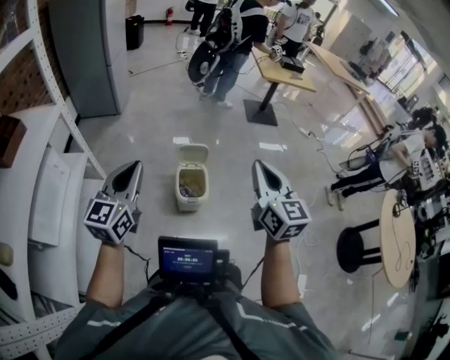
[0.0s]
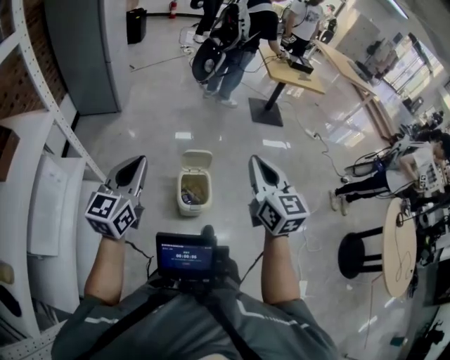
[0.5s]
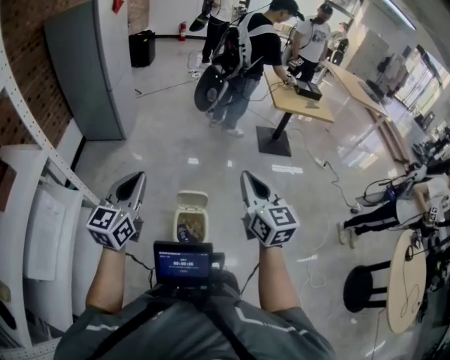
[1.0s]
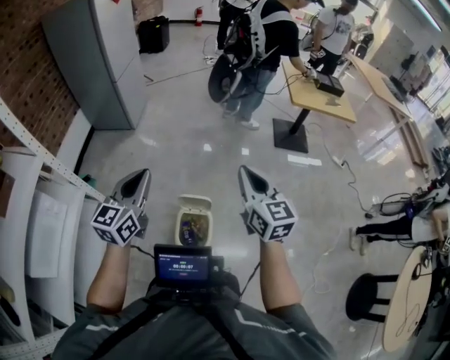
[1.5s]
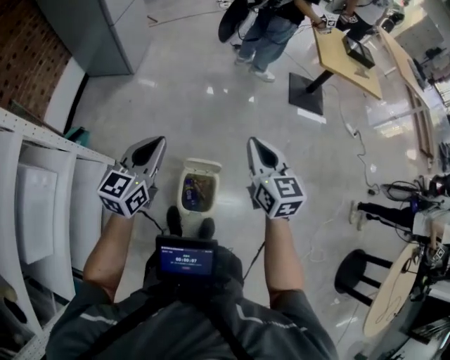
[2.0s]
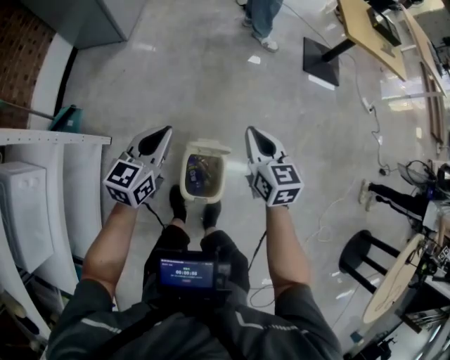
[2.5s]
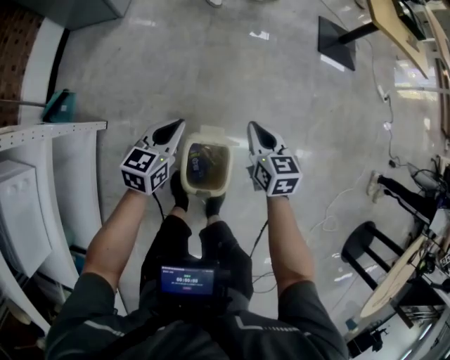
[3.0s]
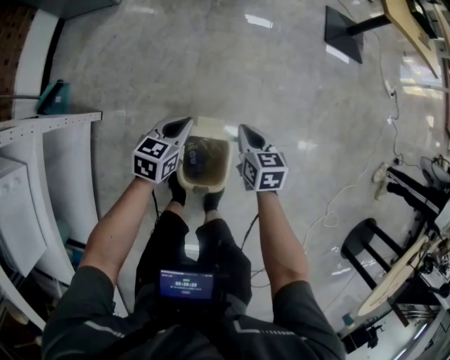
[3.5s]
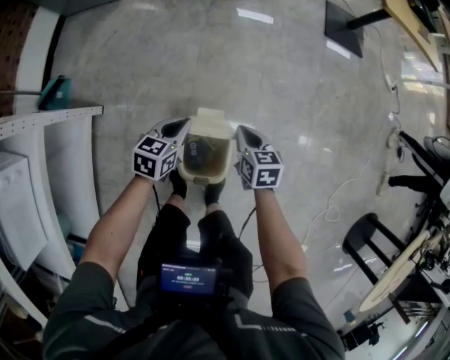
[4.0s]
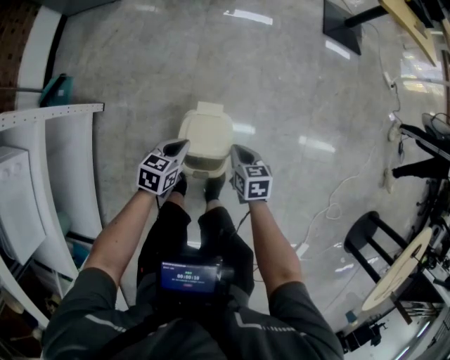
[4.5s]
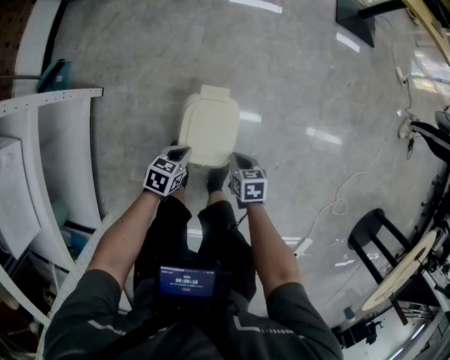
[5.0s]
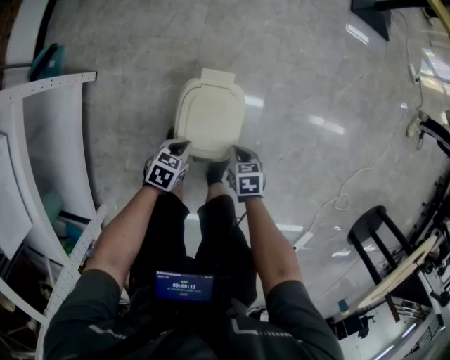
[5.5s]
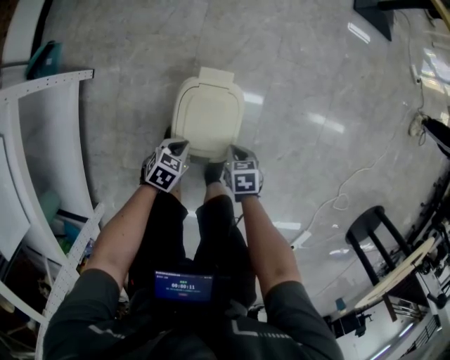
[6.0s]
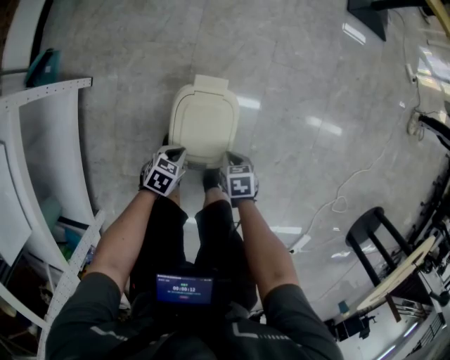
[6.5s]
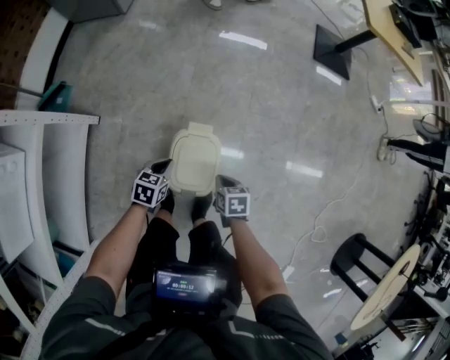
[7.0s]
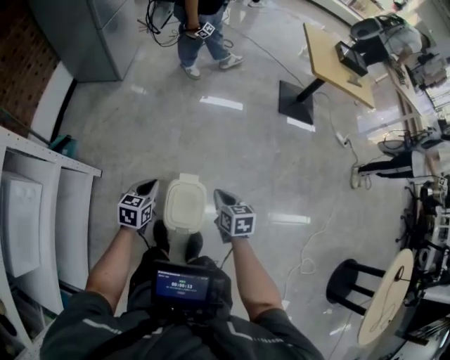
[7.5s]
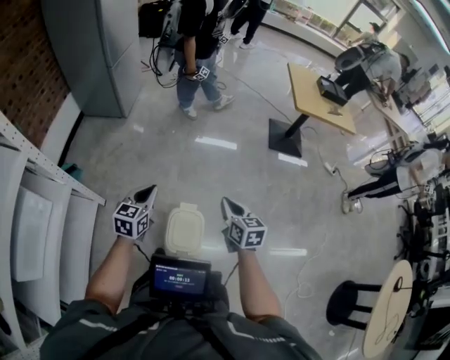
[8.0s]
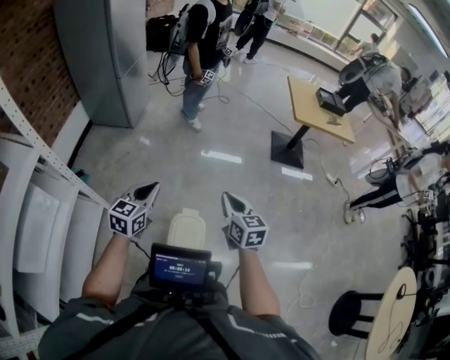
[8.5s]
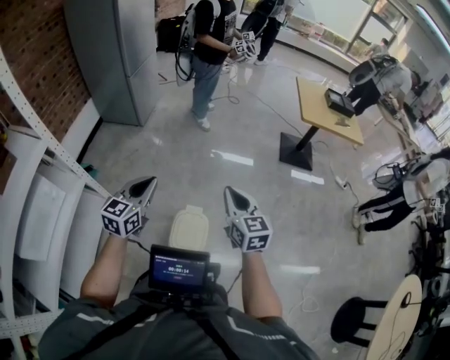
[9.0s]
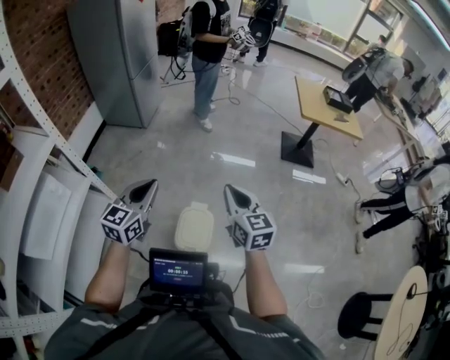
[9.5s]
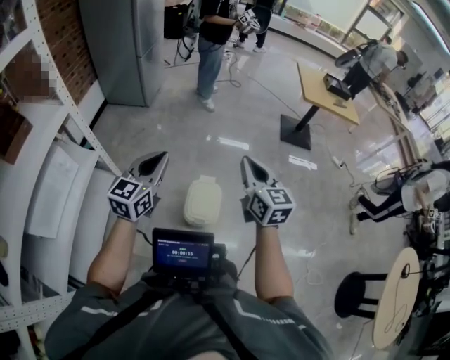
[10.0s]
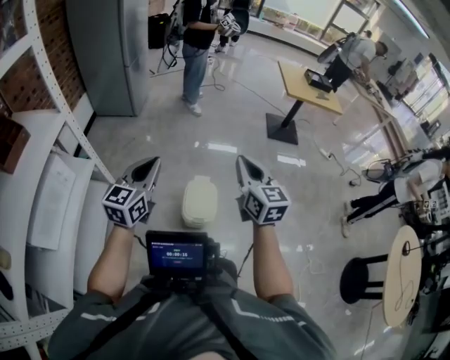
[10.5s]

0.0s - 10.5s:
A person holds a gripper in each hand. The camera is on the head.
0.0s - 2.0s: The two grippers go roughly 35 cm forward.
2.0s - 4.0s: Both grippers travel together downward, about 35 cm. The right gripper swivels approximately 30 degrees; the left gripper changes its angle by about 30 degrees.
4.0s - 6.5s: The left gripper ends up about 30 cm from where it was, and turns by approximately 30 degrees; the right gripper ends up some 30 cm from where it was, and swivels about 30 degrees.
6.5s - 8.5s: The two grippers go approximately 50 cm upward. The left gripper tilts its fingers some 40 degrees upward. The right gripper angles its fingers upward, by approximately 50 degrees.
8.5s - 10.5s: Both grippers travel together backward and upward, approximately 20 cm.

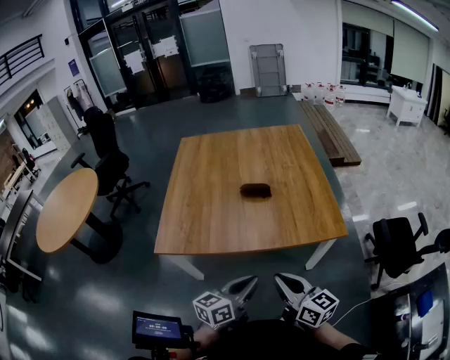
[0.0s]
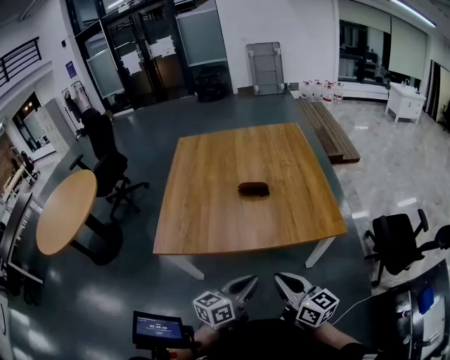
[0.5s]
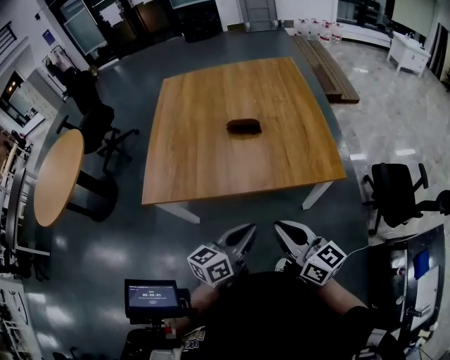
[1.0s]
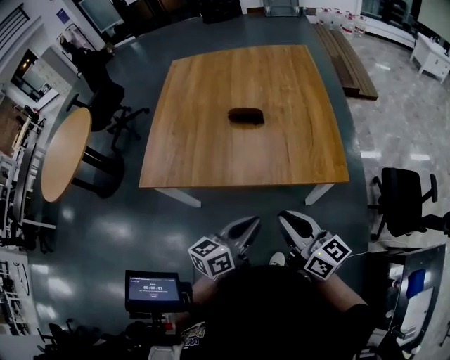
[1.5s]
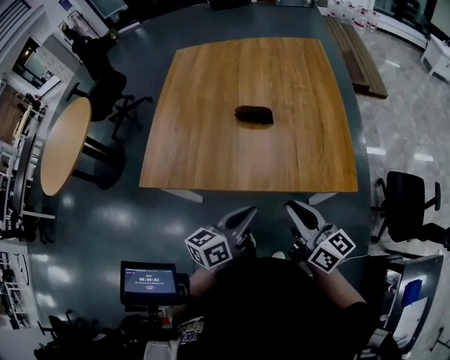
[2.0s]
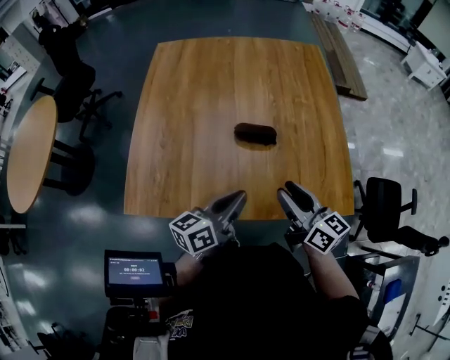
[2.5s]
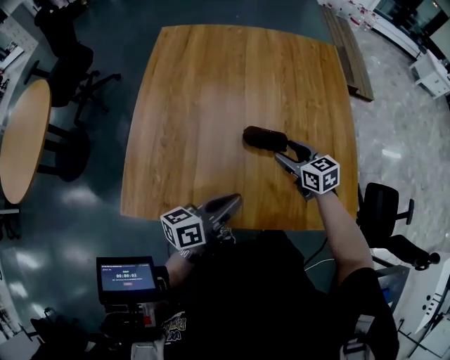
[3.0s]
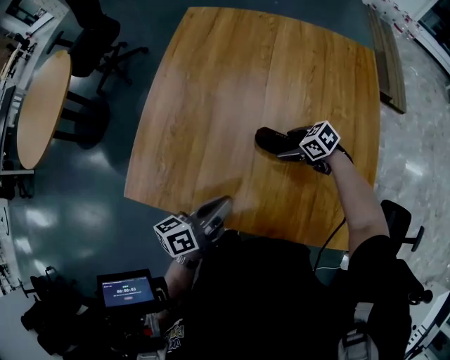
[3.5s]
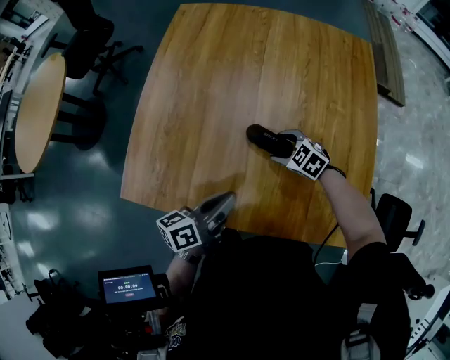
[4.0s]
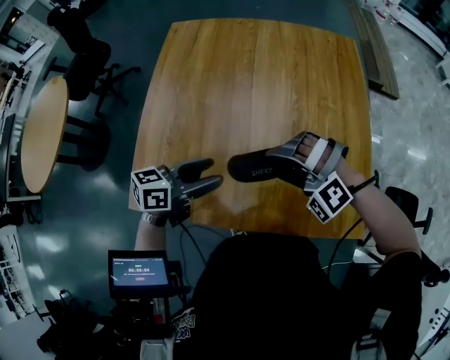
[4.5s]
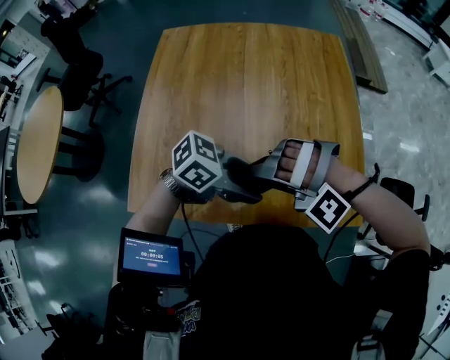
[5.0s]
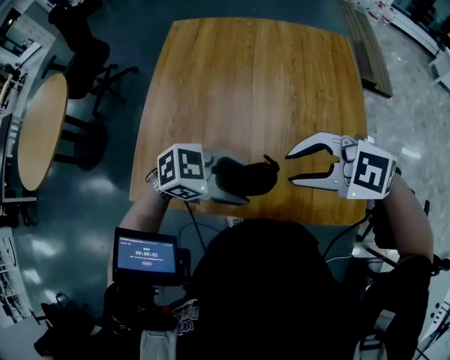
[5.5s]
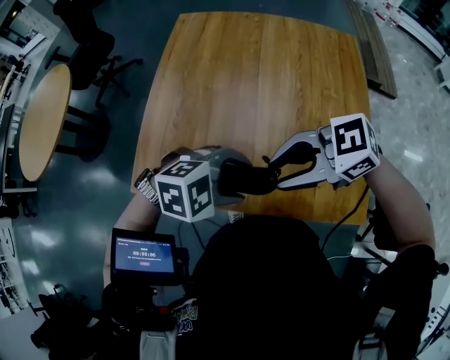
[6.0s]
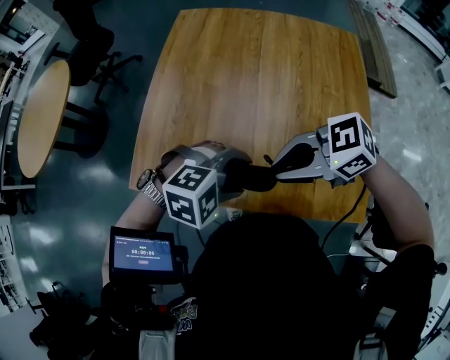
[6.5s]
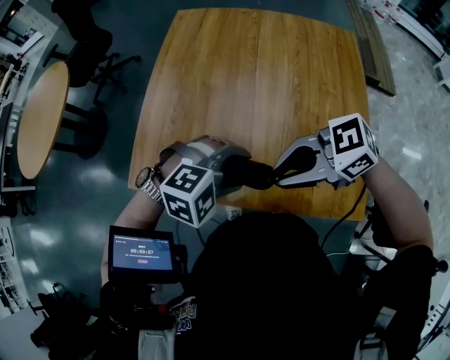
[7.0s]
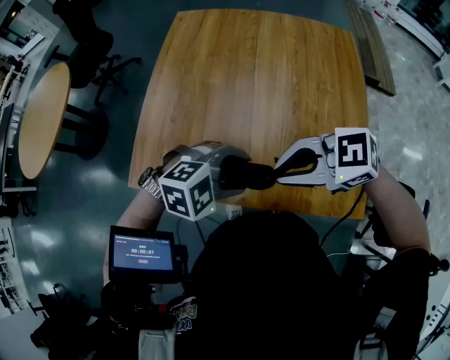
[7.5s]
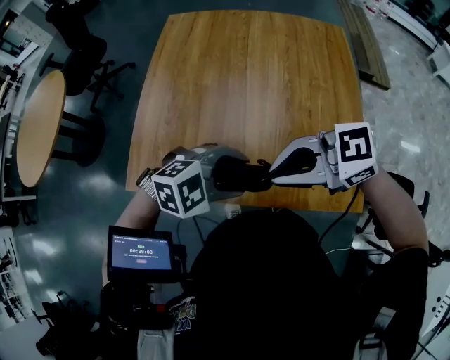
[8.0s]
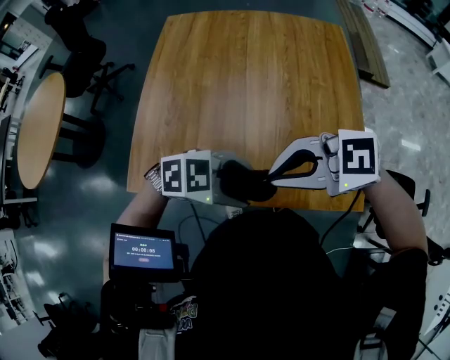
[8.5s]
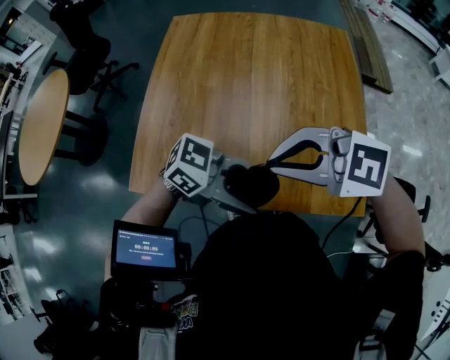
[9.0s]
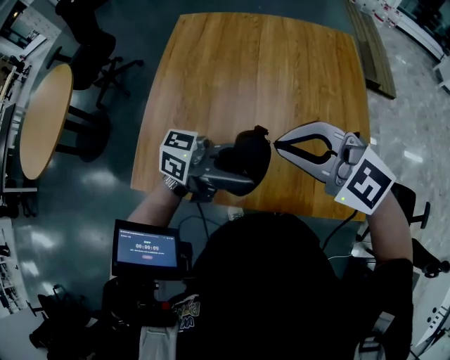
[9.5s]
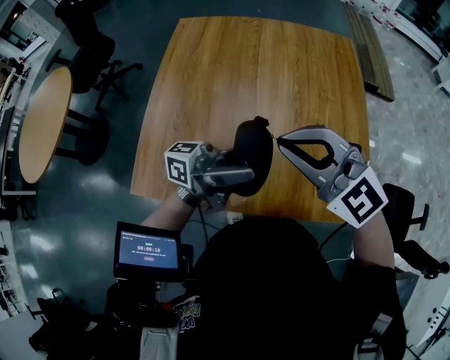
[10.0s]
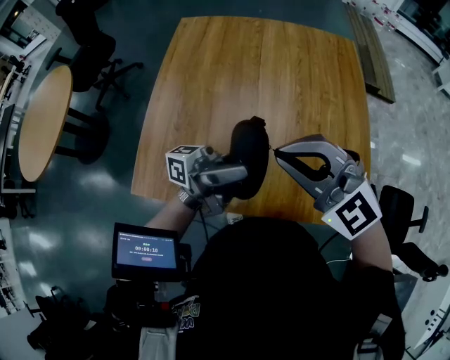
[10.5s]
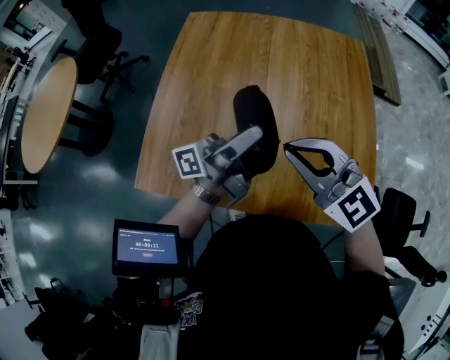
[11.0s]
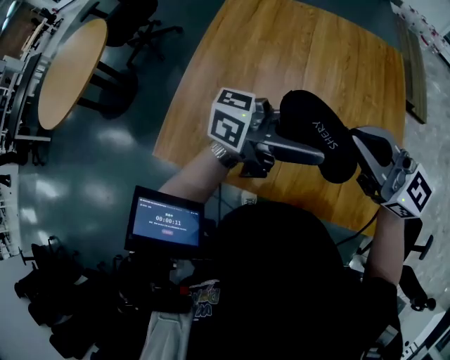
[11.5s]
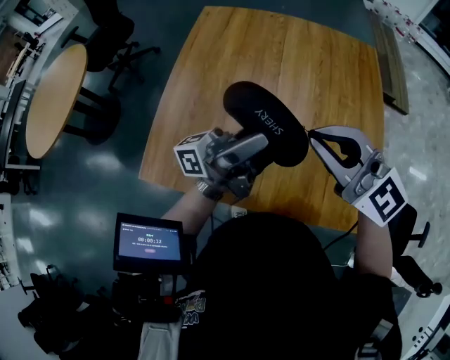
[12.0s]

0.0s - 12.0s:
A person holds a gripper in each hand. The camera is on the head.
0.0s - 2.0s: The left gripper shifts roughly 10 cm forward. Meanwhile the right gripper moves forward and to the right, some 10 cm.
2.0s - 4.0s: The left gripper moves roughly 25 cm. The right gripper ends up approximately 40 cm from where it was, angles its fingers downward, by some 50 degrees, and opens up.
4.0s - 6.0s: The left gripper heads upward, covering approximately 5 cm, rolls clockwise, seen from behind, by some 80 degrees, and opens up. Meanwhile the right gripper heads upward, covering about 30 cm, tips its fingers upward by approximately 30 degrees, and closes its fingers.
6.0s - 8.0s: The right gripper closes its fingers.
8.0s - 10.0s: The left gripper travels upward by approximately 10 cm, and angles its fingers upward, by roughly 80 degrees. Meanwhile the right gripper changes place by roughly 10 cm, and swivels some 60 degrees.
10.0s - 12.0s: The left gripper shifts by about 5 cm, and swivels roughly 20 degrees.

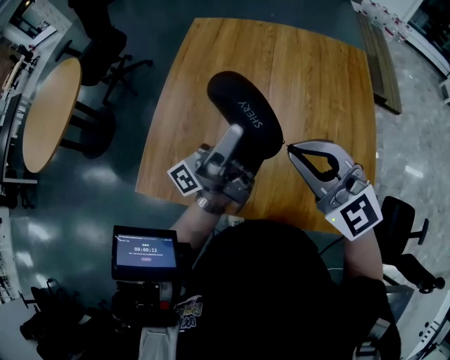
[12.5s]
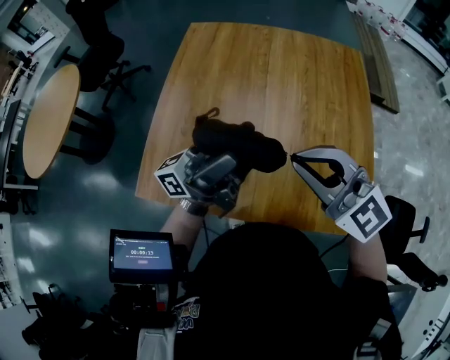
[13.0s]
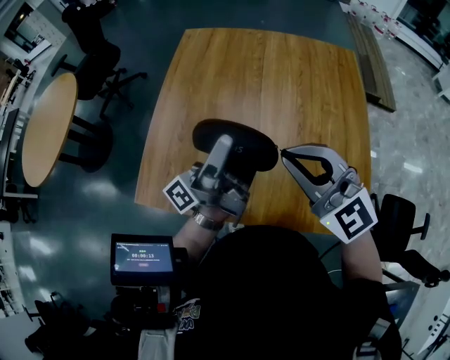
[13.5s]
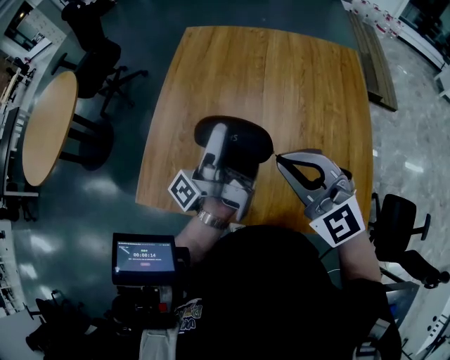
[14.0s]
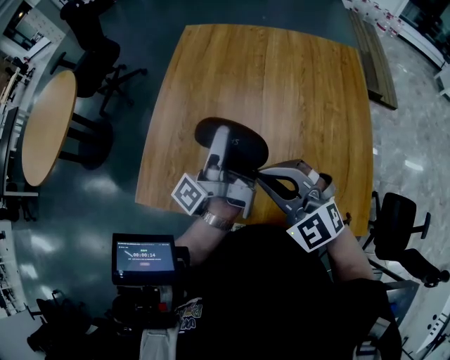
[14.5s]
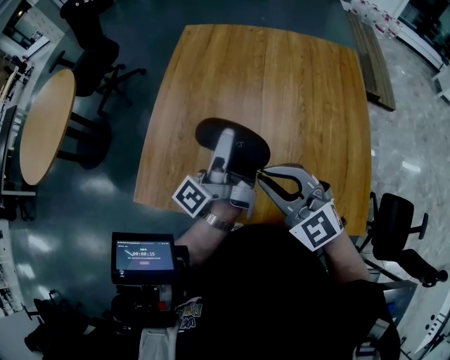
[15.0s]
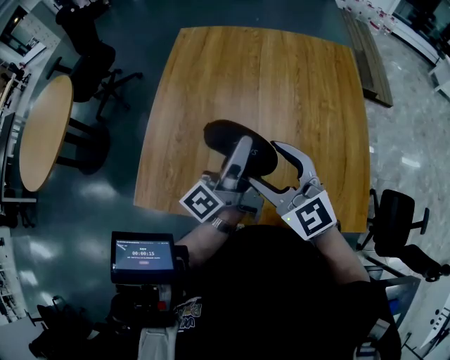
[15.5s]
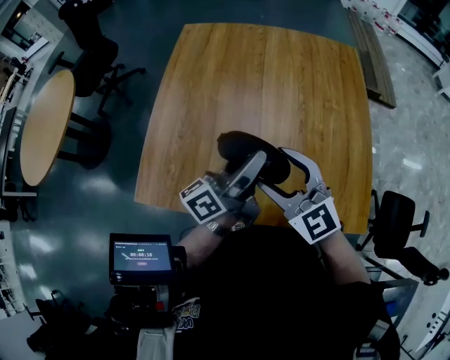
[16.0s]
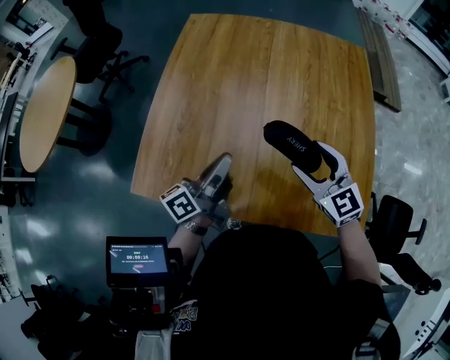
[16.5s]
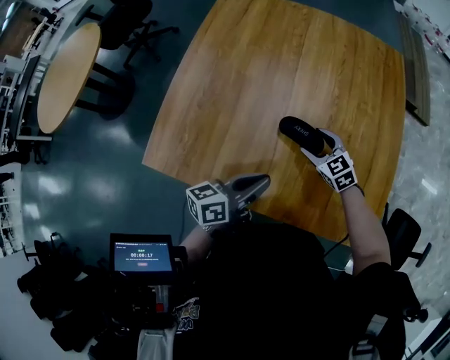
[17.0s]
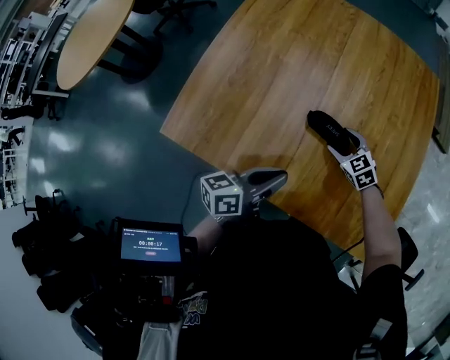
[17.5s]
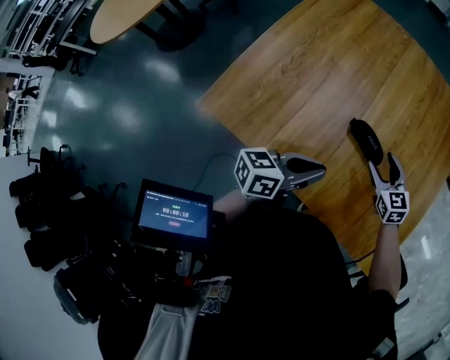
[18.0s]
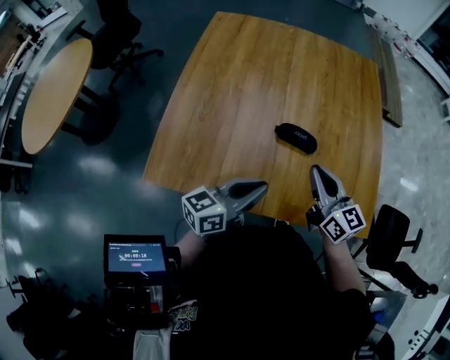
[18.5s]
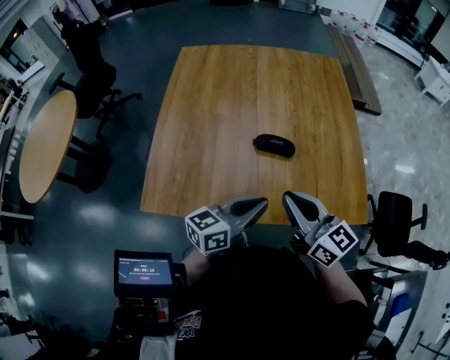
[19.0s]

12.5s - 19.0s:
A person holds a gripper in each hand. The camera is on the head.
12.5s - 14.5s: The two grippers go about 5 cm downward. The left gripper changes its angle by roughly 30 degrees.
14.5s - 17.0s: The right gripper shifts some 30 cm downward, to the right and forward, swivels roughly 40 degrees, and opens; the left gripper heads downward, backward and to the right, covering approximately 20 cm, tips its fingers downward by some 30 degrees, and closes.
17.0s - 19.0s: The right gripper travels upward and backward by about 30 cm, tilts its fingers about 40 degrees upward, and closes up; the left gripper goes roughly 10 cm backward, and turns by some 20 degrees.
